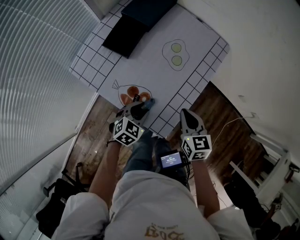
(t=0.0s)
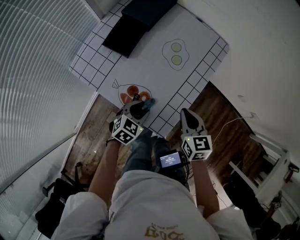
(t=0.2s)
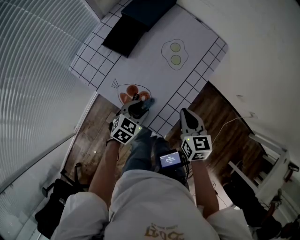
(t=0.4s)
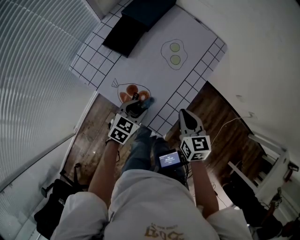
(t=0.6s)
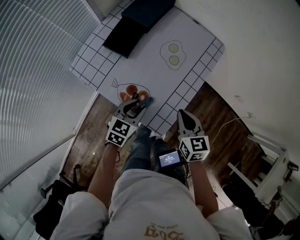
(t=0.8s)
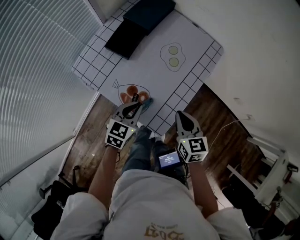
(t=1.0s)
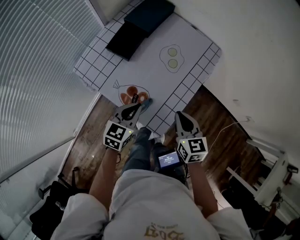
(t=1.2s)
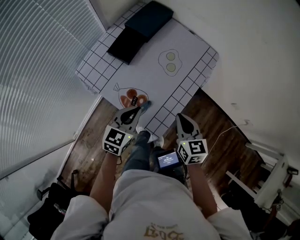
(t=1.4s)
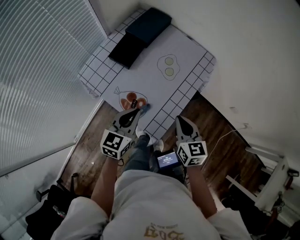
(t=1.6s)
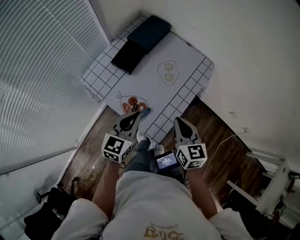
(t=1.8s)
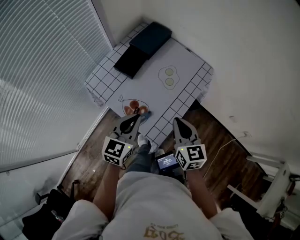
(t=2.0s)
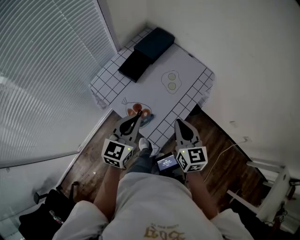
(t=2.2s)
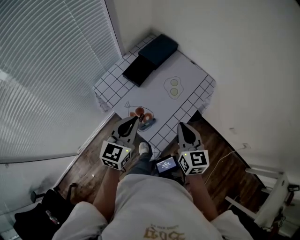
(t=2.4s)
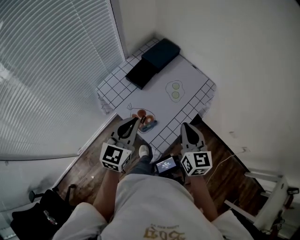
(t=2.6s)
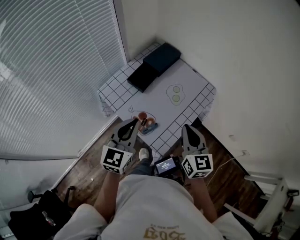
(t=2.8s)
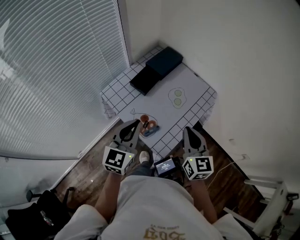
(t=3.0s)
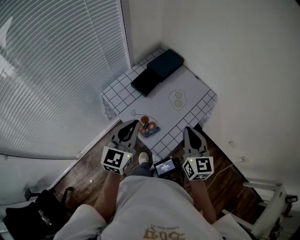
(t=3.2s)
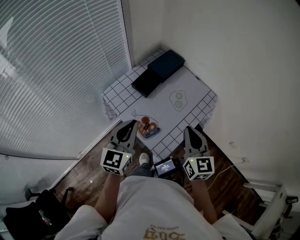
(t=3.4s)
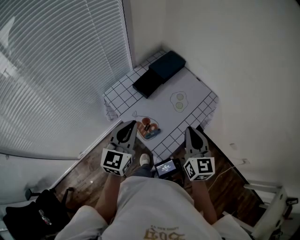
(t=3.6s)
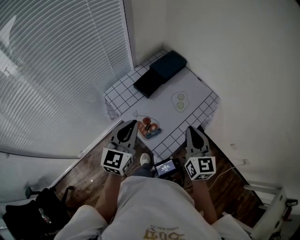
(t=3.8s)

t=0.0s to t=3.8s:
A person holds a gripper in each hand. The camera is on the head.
t=0.0s to t=1.2s: The left gripper shifts some 10 cm upward, rotates roughly 30 degrees, and closes.
t=1.2s to t=2.6s: Both grippers travel together upward, approximately 15 cm. The left gripper rotates some 20 degrees.
t=2.6s to t=3.8s: The grippers move only a little.

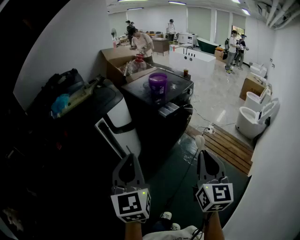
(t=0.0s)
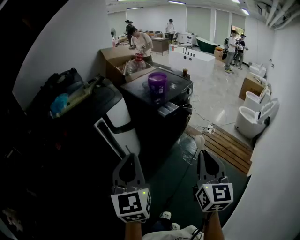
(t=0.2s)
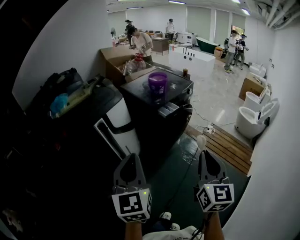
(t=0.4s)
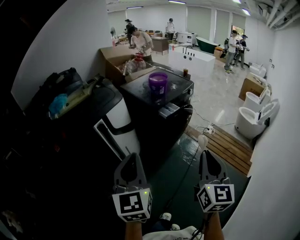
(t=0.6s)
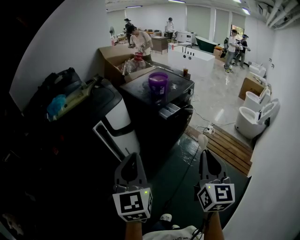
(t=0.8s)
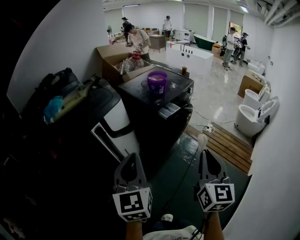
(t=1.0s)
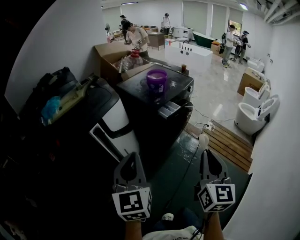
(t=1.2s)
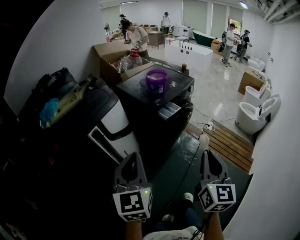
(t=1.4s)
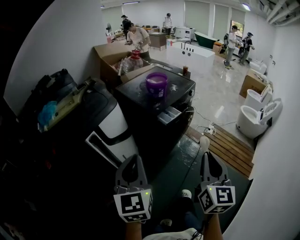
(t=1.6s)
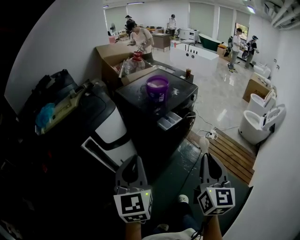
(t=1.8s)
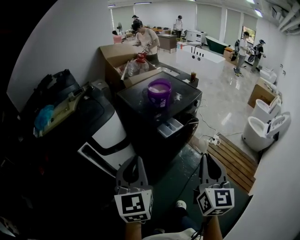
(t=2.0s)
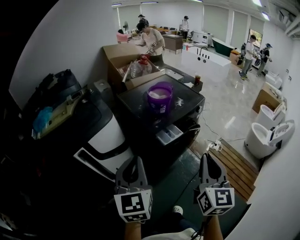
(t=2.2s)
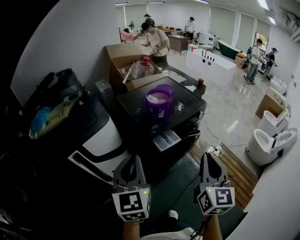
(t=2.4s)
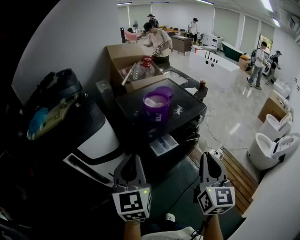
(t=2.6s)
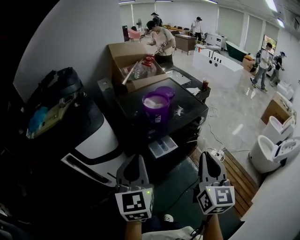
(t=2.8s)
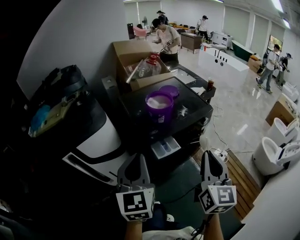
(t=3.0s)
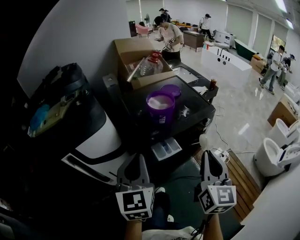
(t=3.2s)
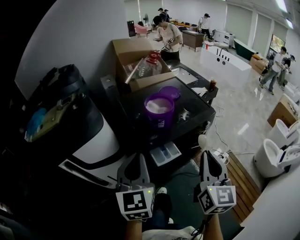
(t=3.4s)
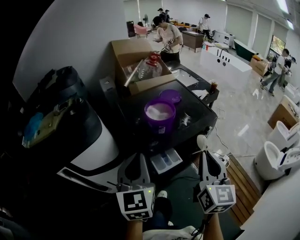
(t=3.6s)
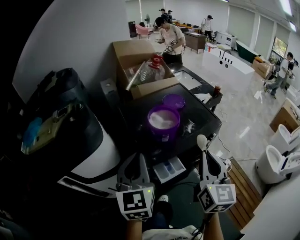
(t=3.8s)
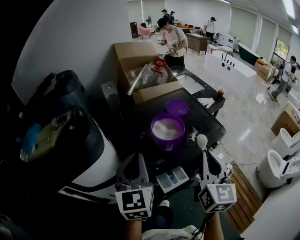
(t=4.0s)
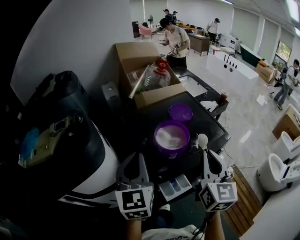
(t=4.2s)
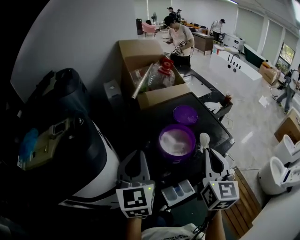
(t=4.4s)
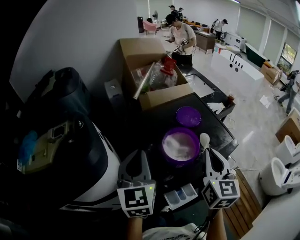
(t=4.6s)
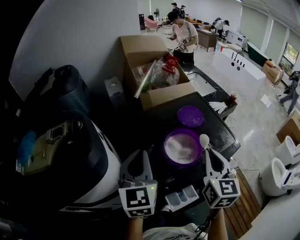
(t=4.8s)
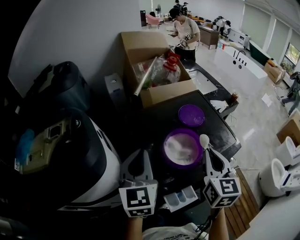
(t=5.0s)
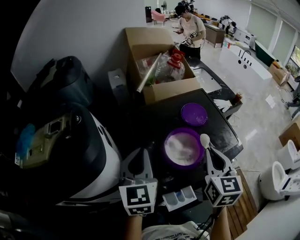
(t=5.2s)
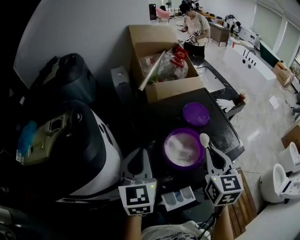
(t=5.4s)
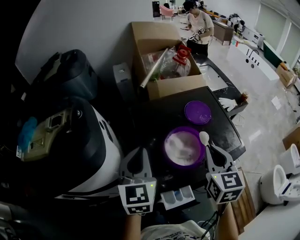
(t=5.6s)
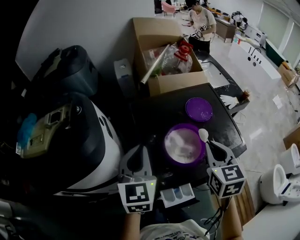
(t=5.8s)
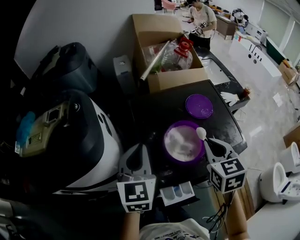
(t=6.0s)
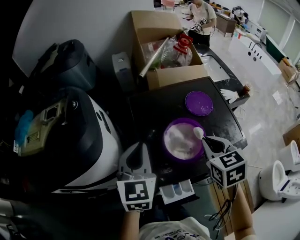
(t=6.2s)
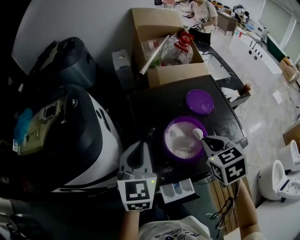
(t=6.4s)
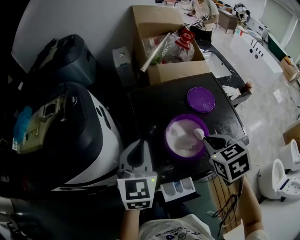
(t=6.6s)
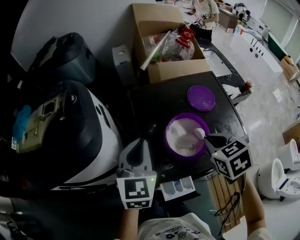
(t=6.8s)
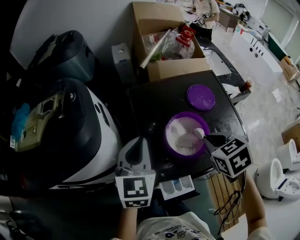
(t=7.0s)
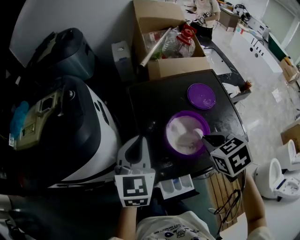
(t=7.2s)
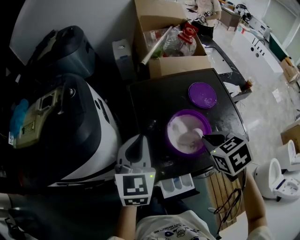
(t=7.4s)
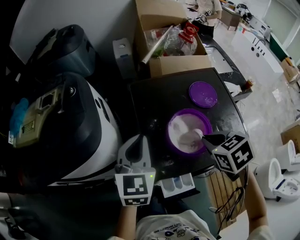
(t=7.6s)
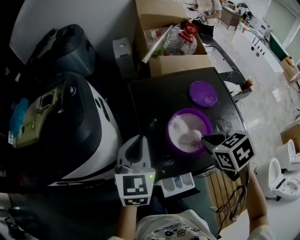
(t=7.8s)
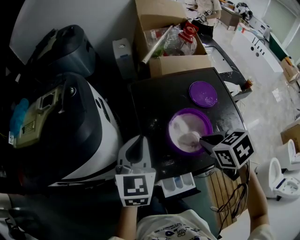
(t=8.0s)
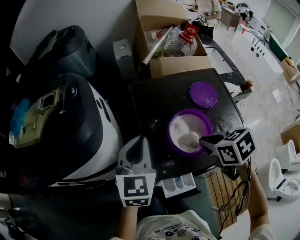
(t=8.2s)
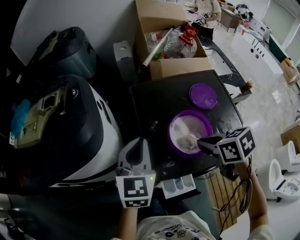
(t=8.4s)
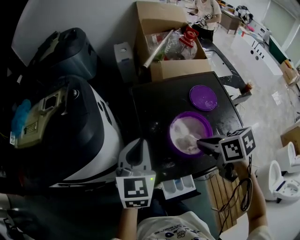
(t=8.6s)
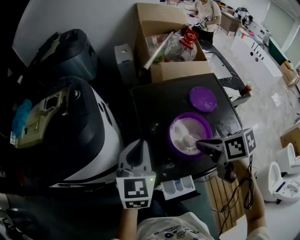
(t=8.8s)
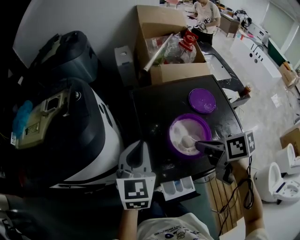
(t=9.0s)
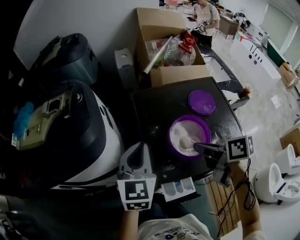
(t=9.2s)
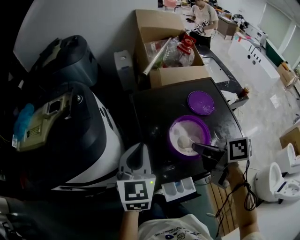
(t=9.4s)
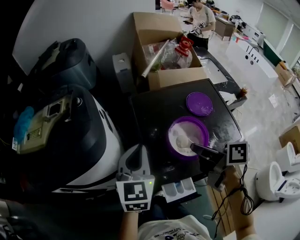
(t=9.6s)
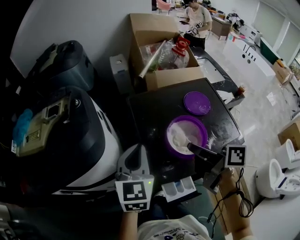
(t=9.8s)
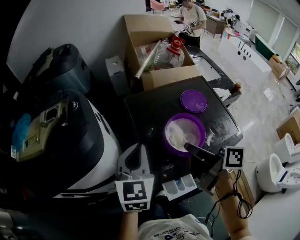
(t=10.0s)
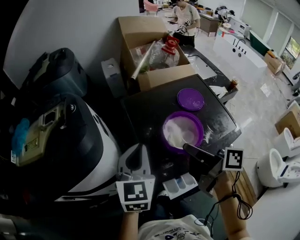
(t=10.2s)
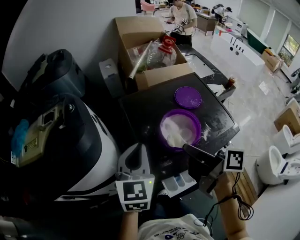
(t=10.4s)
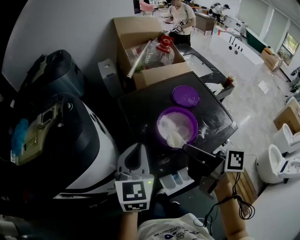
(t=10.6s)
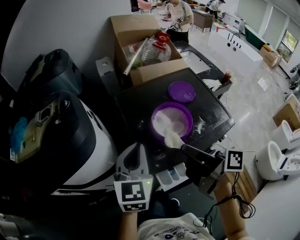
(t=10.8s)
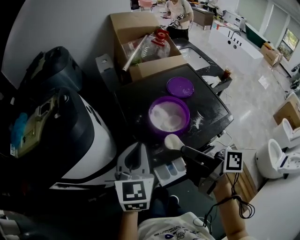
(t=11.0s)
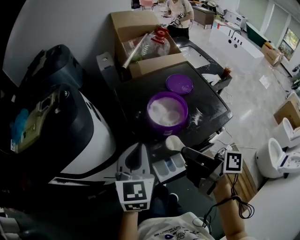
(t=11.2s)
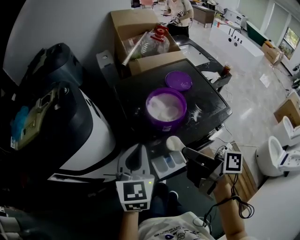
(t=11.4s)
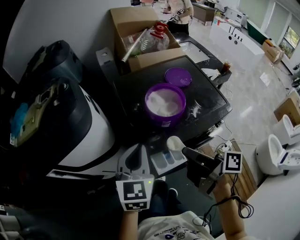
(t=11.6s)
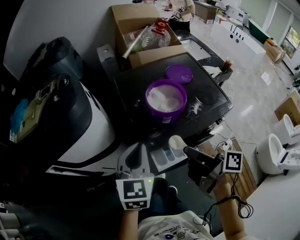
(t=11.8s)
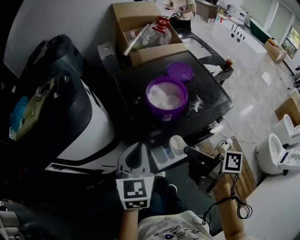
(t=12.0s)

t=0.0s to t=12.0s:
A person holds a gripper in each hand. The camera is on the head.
t=0.0s to t=1.6s: Both grippers travel together forward, approximately 15 cm.
t=1.6s to t=3.0s: Both grippers move forward and to the right, some 30 cm.
t=3.0s to t=4.4s: Both grippers move forward, roughly 30 cm.
t=4.4s to t=6.0s: The left gripper goes roughly 10 cm downward and forward, while the right gripper shifts roughly 15 cm forward and downward, and swivels about 40 degrees.
t=6.0s to t=7.6s: The right gripper changes place by some 5 cm, and swivels approximately 30 degrees.
t=7.6s to t=9.0s: The right gripper rotates roughly 40 degrees.
t=9.0s to t=10.4s: The right gripper heads upward, covering approximately 5 cm, and points its fingers roughly 30 degrees further upward.
t=10.4s to t=12.0s: The left gripper heads backward, covering roughly 15 cm. The right gripper heads backward and downward, covering some 15 cm.

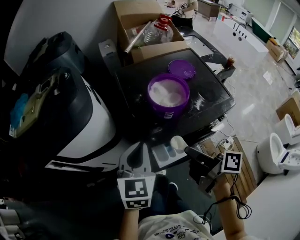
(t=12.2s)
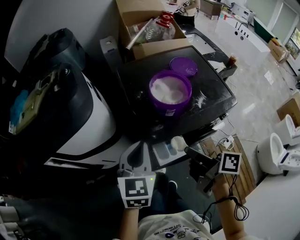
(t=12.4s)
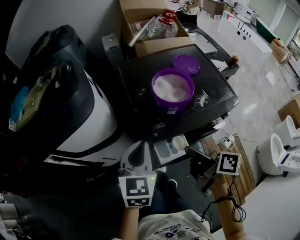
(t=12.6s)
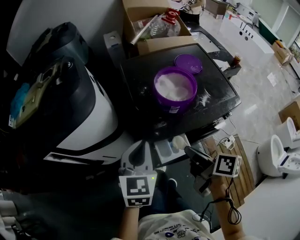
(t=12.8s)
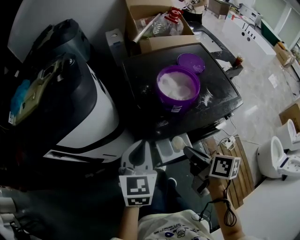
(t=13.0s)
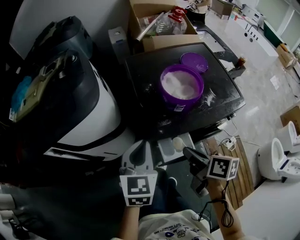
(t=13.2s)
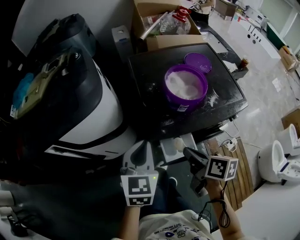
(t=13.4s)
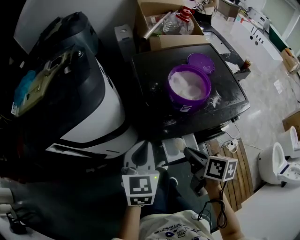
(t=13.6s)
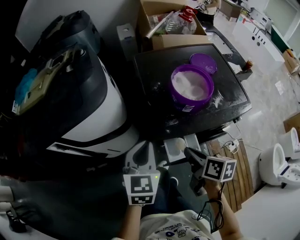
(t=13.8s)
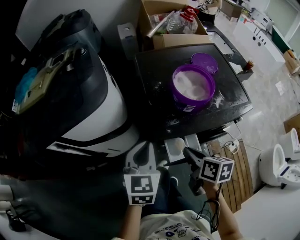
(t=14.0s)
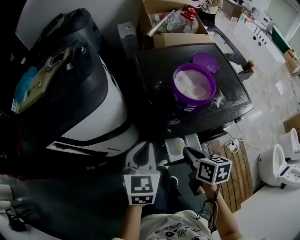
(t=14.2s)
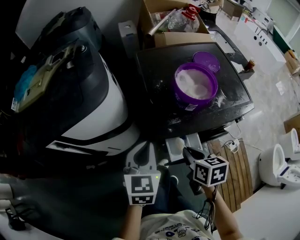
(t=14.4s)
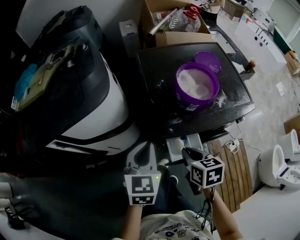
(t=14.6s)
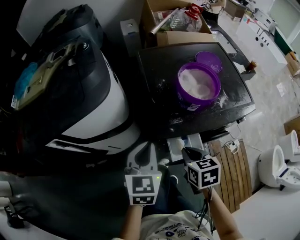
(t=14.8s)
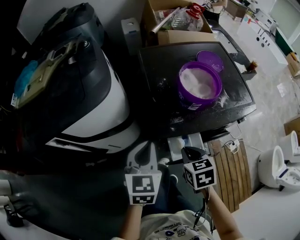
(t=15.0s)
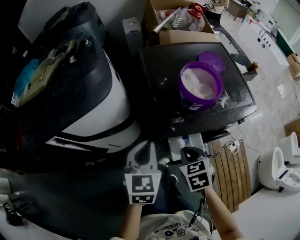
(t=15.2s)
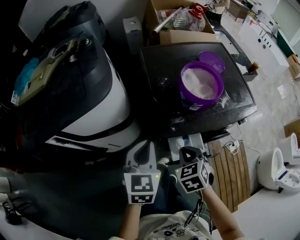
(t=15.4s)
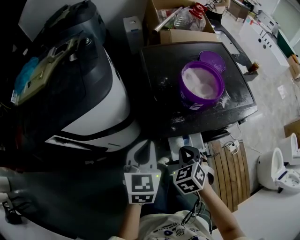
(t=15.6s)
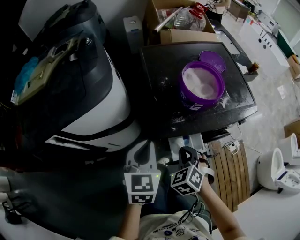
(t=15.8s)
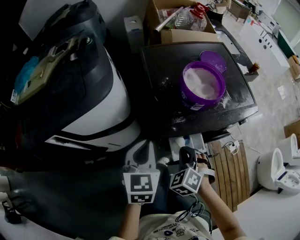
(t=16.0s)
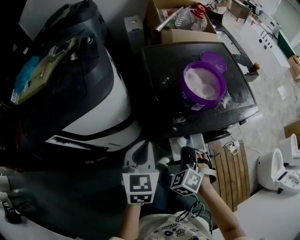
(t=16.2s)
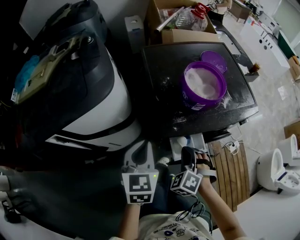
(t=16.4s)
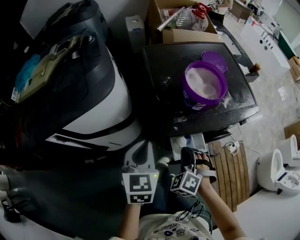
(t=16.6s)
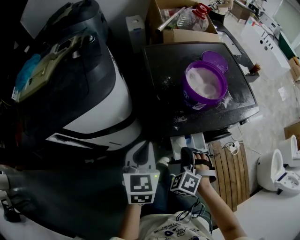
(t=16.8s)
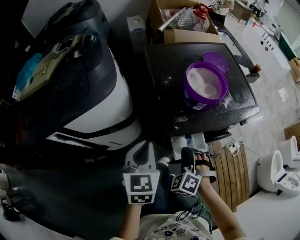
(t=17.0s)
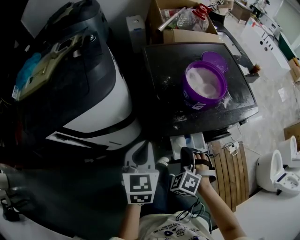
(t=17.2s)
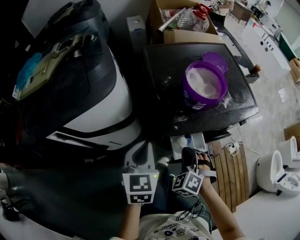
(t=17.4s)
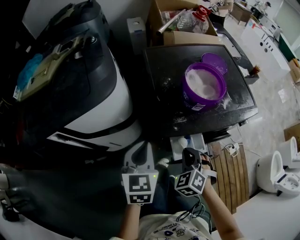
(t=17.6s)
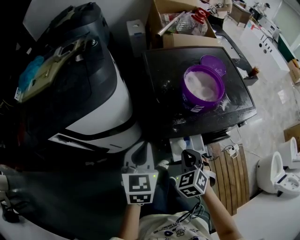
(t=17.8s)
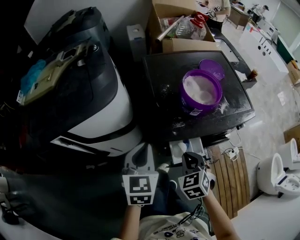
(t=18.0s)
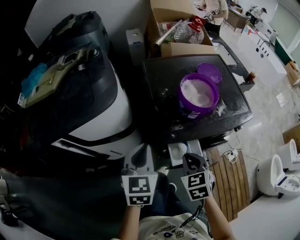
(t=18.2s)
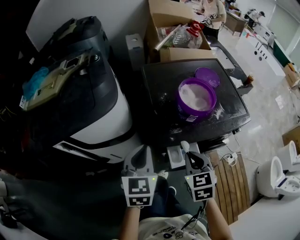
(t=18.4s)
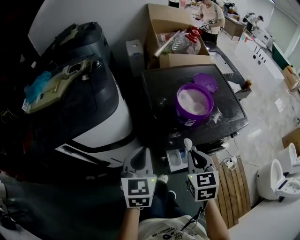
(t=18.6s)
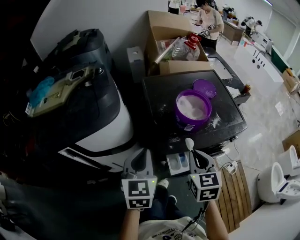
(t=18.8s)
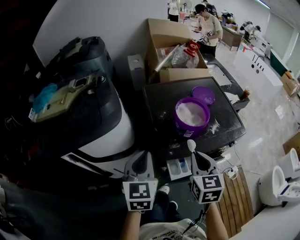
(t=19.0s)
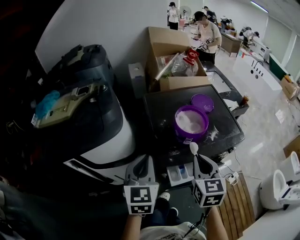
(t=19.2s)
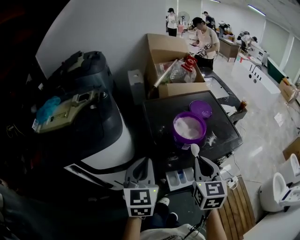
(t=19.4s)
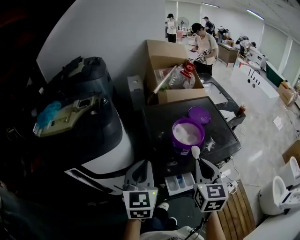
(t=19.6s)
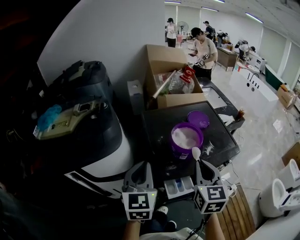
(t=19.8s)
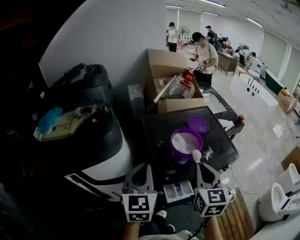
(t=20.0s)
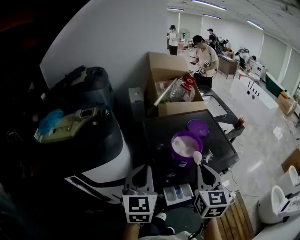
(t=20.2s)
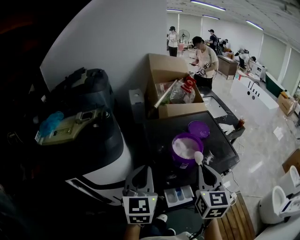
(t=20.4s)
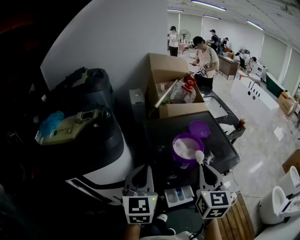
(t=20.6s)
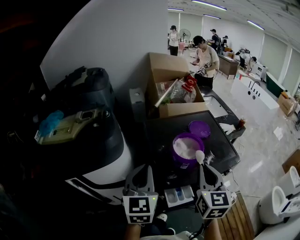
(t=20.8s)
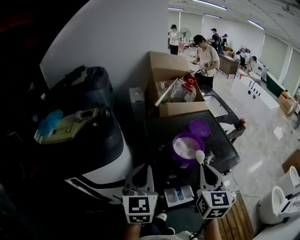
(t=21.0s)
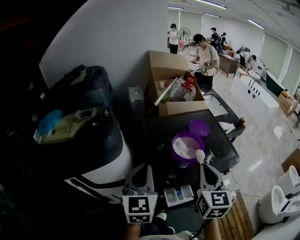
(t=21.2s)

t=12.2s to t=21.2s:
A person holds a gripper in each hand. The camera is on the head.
t=12.2s to t=13.8s: The left gripper goes some 5 cm downward. The right gripper moves downward, approximately 10 cm, and rotates roughly 40 degrees.
t=13.8s to t=15.2s: The right gripper shifts by approximately 5 cm, and rotates around the line of its fingers by about 40 degrees, counterclockwise from behind.
t=15.2s to t=16.6s: The right gripper rolls counterclockwise, seen from behind, by about 50 degrees.
t=16.6s to t=18.2s: The right gripper shifts about 5 cm upward, and rotates around the line of its fingers by about 40 degrees, clockwise from behind.
t=18.2s to t=19.8s: The right gripper travels upward by about 20 cm, and swivels roughly 40 degrees. Meanwhile the left gripper is displaced upward by approximately 15 cm.
t=19.8s to t=21.2s: The grippers stay close to where they were, moving slightly.
